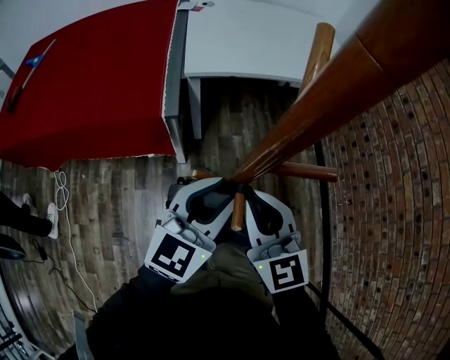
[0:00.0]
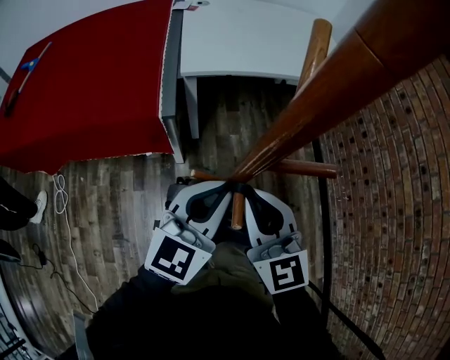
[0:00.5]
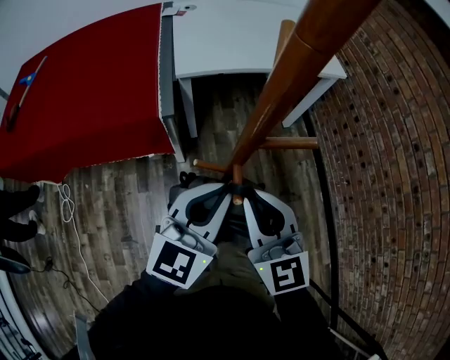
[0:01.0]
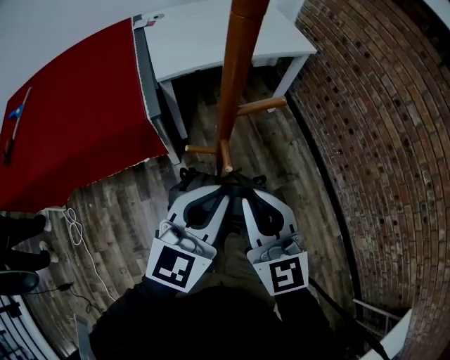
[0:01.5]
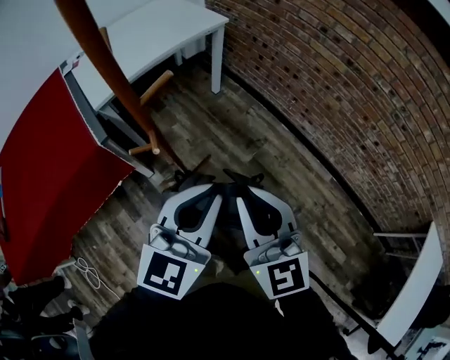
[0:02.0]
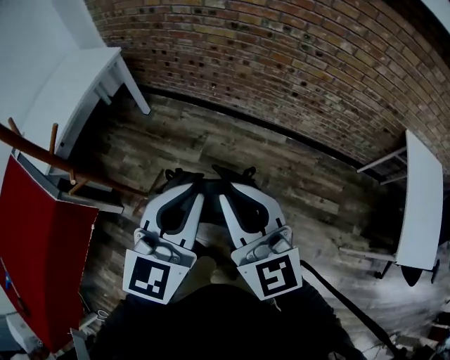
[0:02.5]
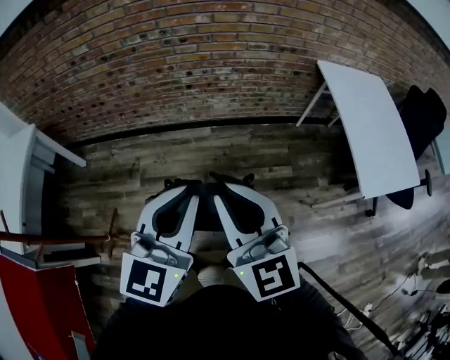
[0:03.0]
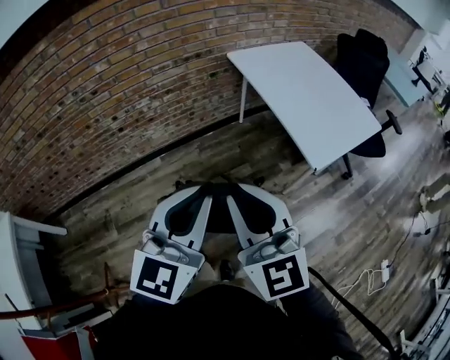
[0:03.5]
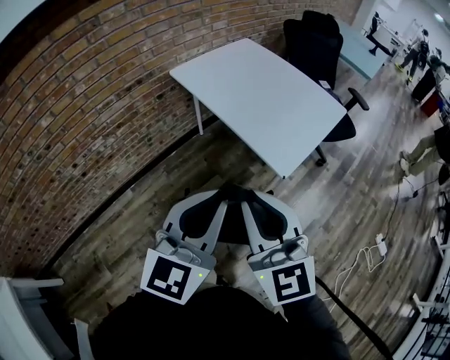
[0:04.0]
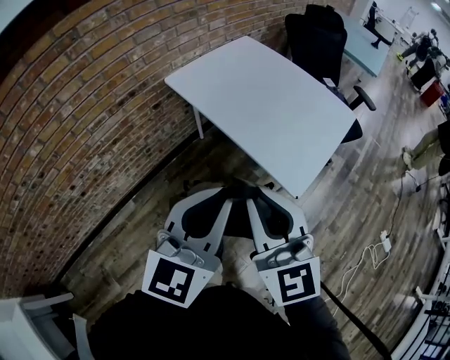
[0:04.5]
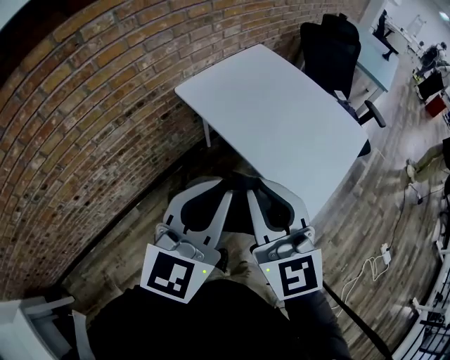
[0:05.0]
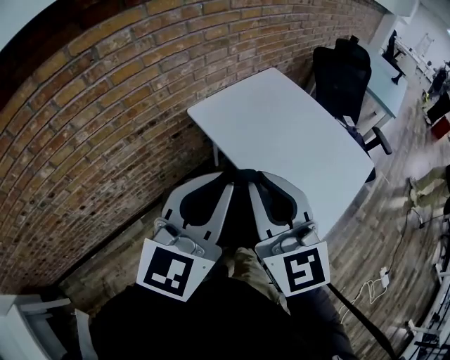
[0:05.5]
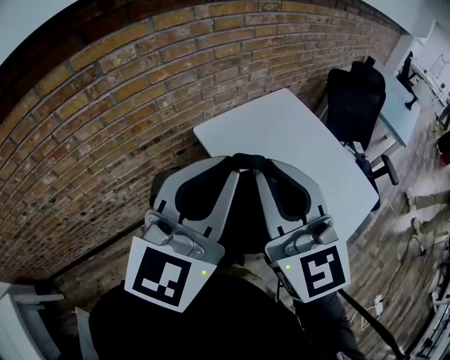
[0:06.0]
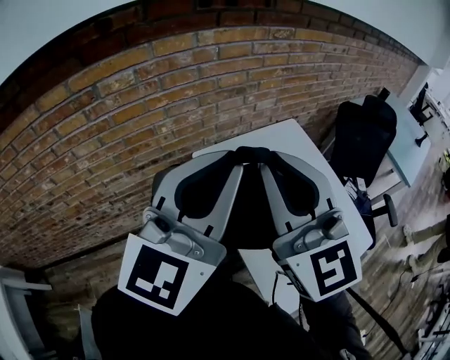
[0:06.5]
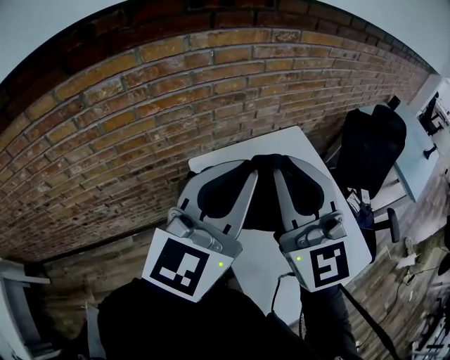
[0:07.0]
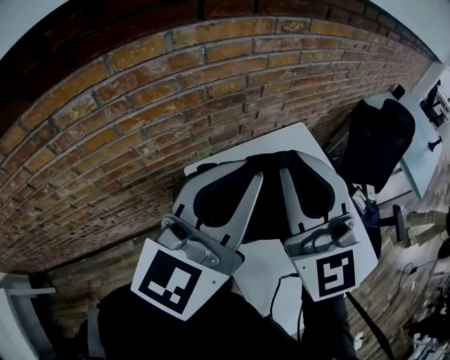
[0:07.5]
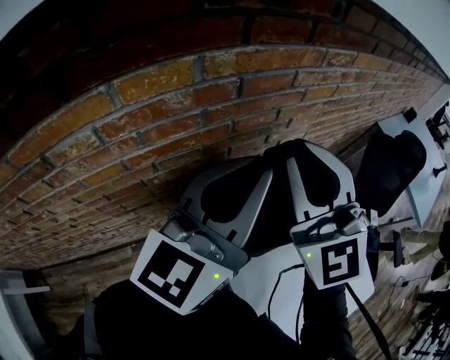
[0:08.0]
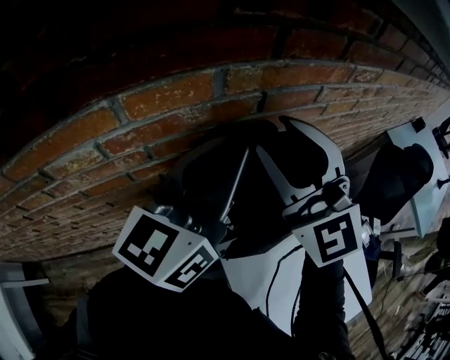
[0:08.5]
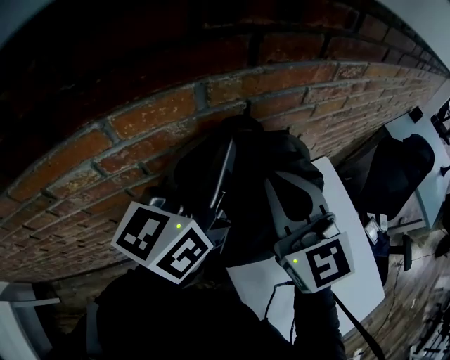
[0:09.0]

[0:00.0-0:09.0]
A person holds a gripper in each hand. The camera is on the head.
0.0 to 2.0 s: The left gripper ends up some 25 cm from where it was, turns by some 30 degrees, and closes its fingers; the right gripper ends up some 25 cm from where it was, and turns by approximately 40 degrees.
2.0 to 4.5 s: Both grippers are carried some 1 m. The right gripper swivels some 90 degrees, while the left gripper changes its angle by some 90 degrees.
4.5 to 7.0 s: Both grippers are carried forward, about 40 cm. The right gripper swivels some 30 degrees, while the left gripper turns by approximately 20 degrees.
7.0 to 9.0 s: The two grippers go roughly 30 cm forward. The right gripper opens, then closes once more.

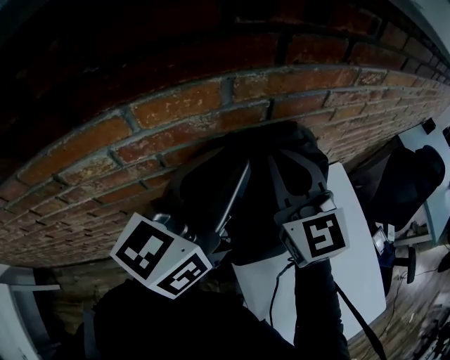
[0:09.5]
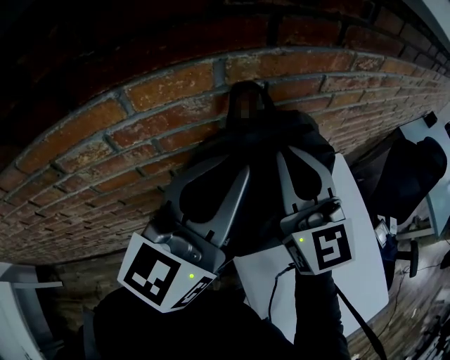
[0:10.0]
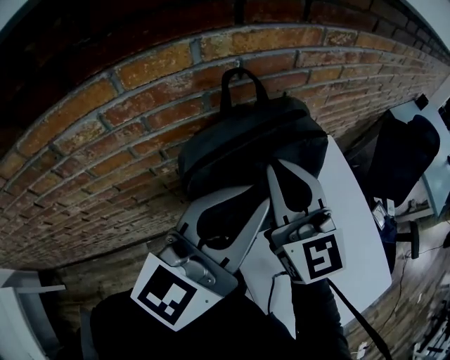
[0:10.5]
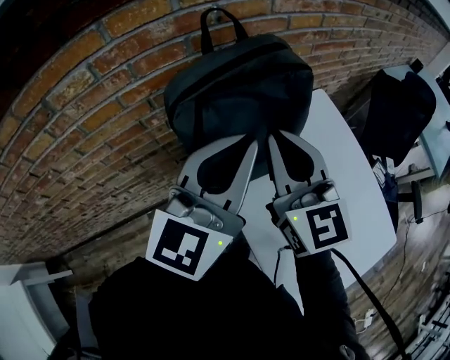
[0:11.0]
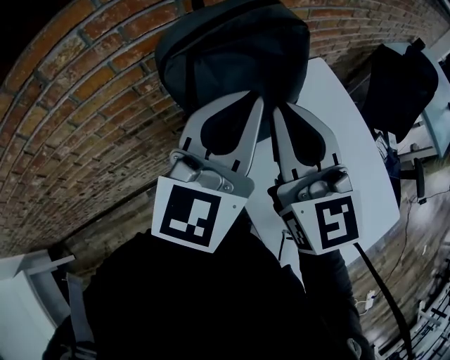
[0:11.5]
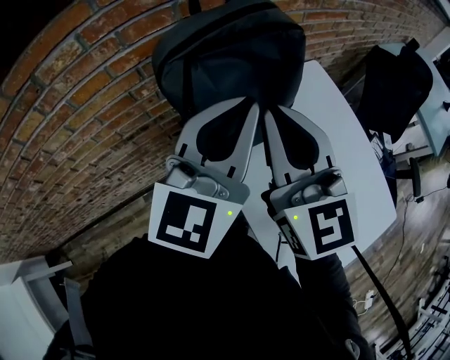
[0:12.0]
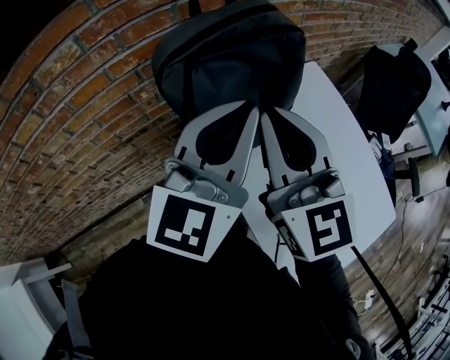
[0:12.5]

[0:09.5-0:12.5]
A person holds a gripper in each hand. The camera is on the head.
9.5 to 11.0 s: Both grippers move backward and to the right, roughly 20 cm.
11.0 to 12.5 s: The right gripper heads backward, covering approximately 5 cm.

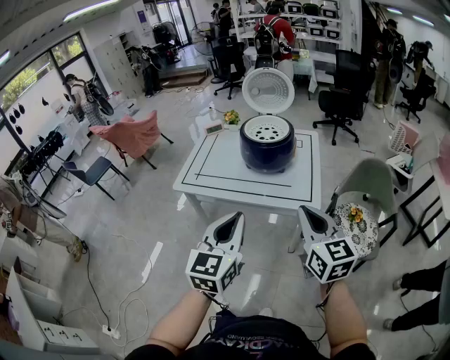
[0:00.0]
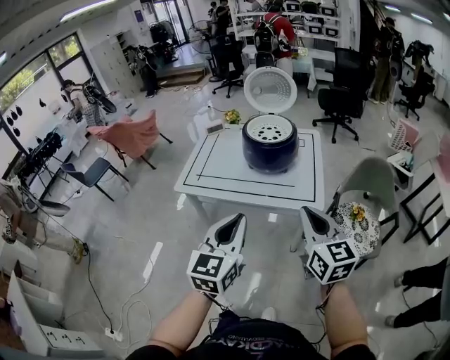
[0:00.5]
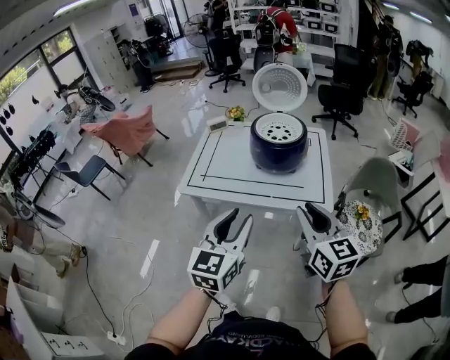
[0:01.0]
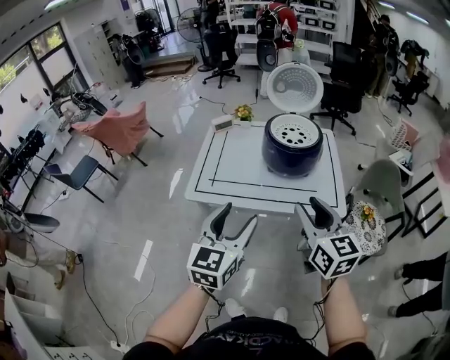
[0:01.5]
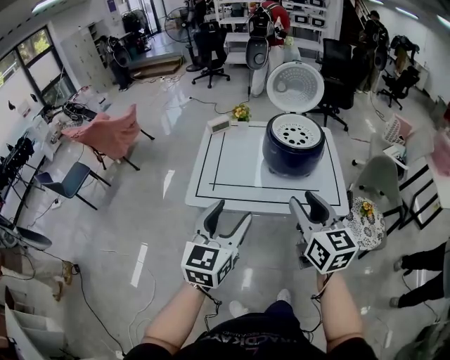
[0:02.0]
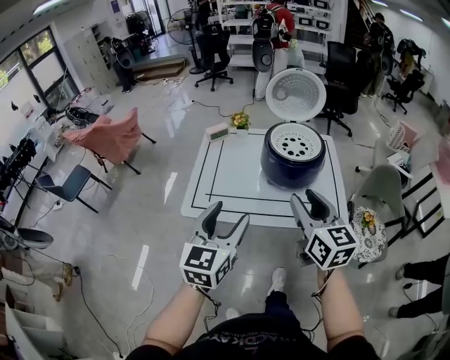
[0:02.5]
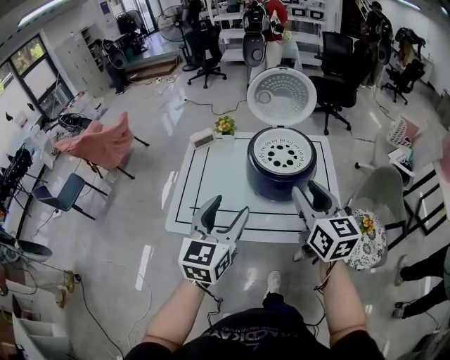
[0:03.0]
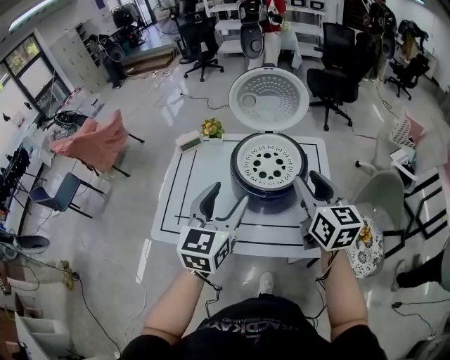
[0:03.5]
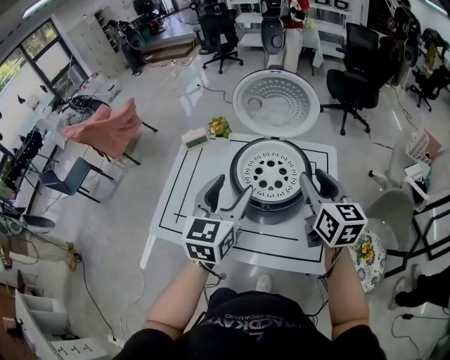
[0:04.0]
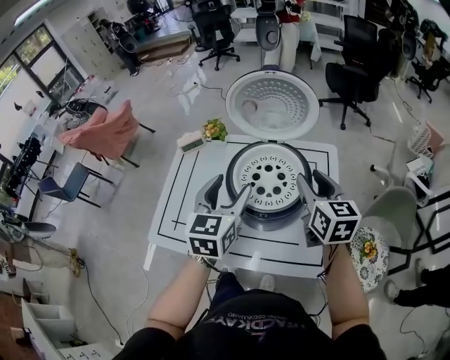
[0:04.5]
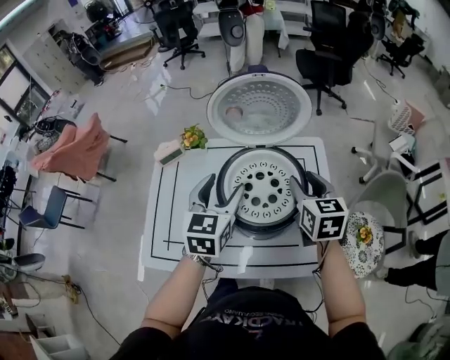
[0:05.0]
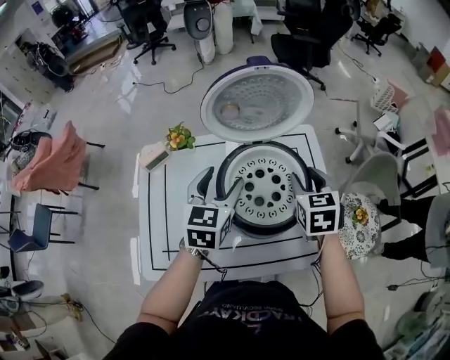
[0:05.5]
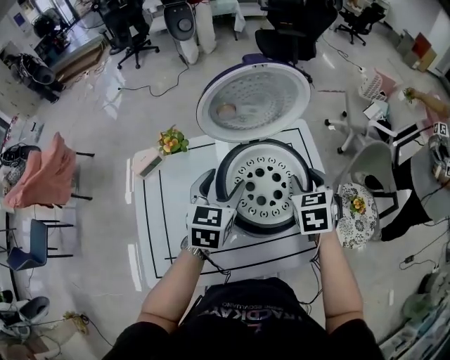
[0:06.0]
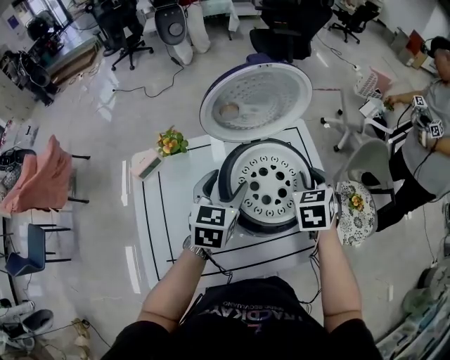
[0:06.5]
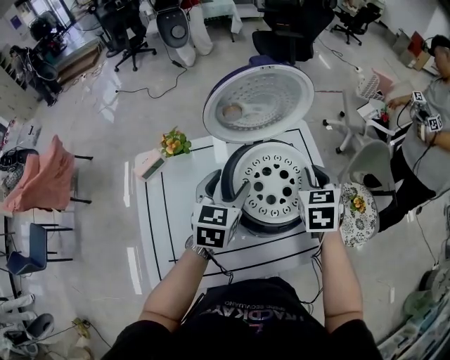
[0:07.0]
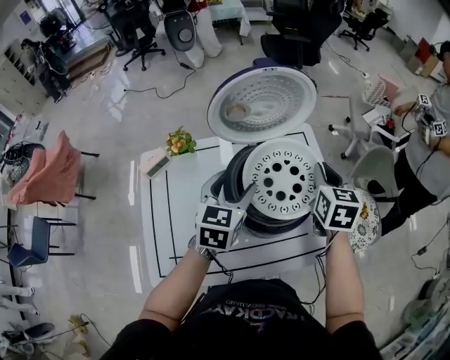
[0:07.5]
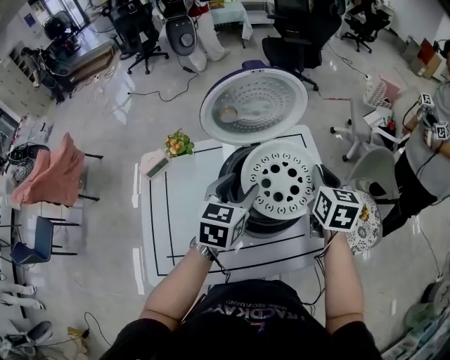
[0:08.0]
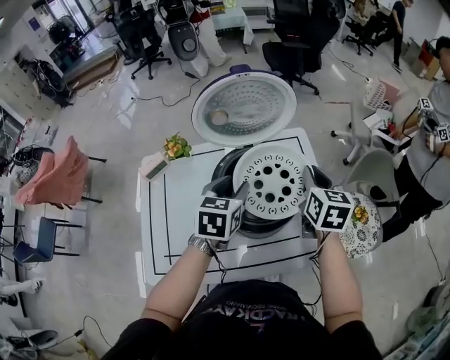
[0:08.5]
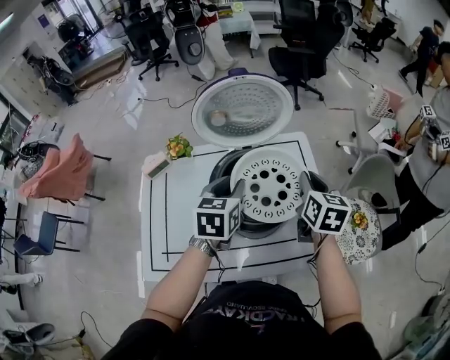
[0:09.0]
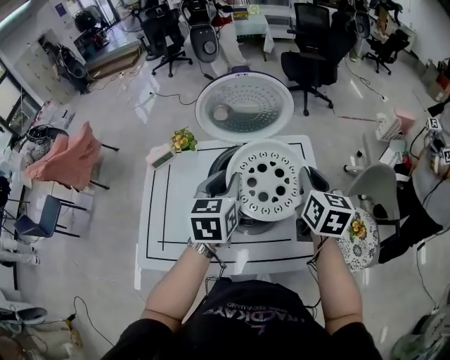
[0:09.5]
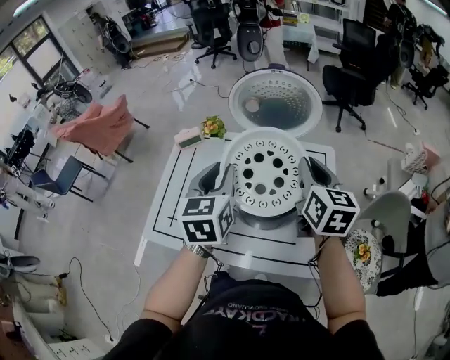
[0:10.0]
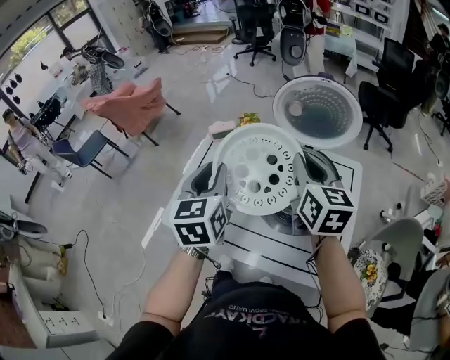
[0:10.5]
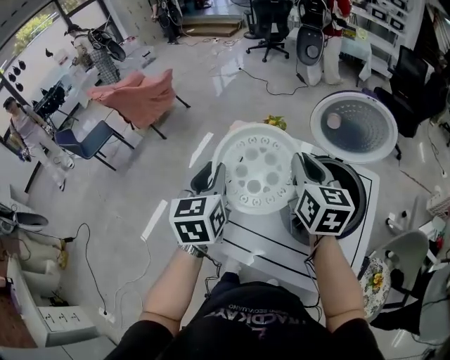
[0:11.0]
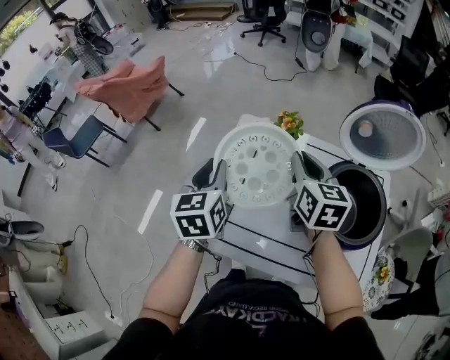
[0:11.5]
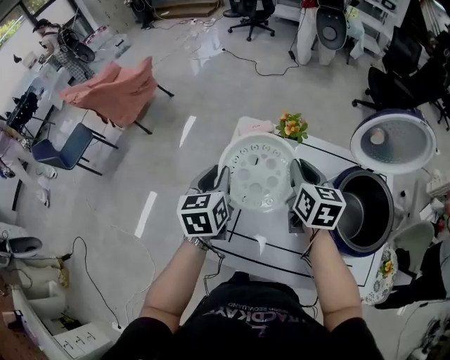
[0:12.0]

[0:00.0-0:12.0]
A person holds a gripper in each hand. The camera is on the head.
0.0 to 2.0 s: Both grippers move to the left and forward, about 25 cm. The right gripper opens its fingers. Meanwhile the left gripper opens.
2.0 to 4.0 s: Both grippers move forward and to the right, roughly 40 cm.
4.0 to 6.0 s: The right gripper shifts some 10 cm downward, and points its fingers roughly 30 degrees further downward. The left gripper shifts by approximately 20 cm, and swivels approximately 30 degrees.
6.0 to 8.0 s: The right gripper heads upward, covering about 5 cm, turns by approximately 30 degrees, and closes.
8.0 to 10.0 s: The two grippers go about 10 cm upward. The right gripper swivels roughly 30 degrees, while the left gripper turns by about 40 degrees, and closes its fingers.
10.0 to 12.0 s: The two grippers go approximately 35 cm to the left and forward.

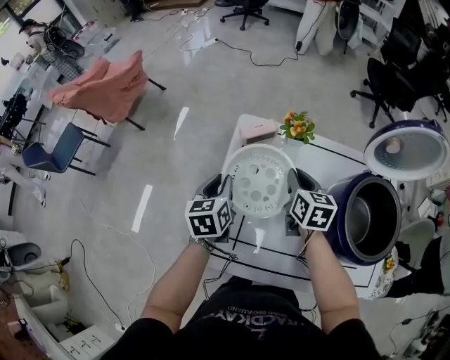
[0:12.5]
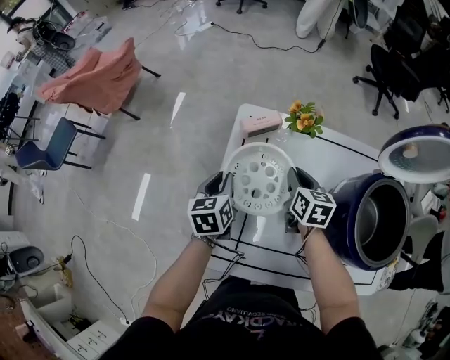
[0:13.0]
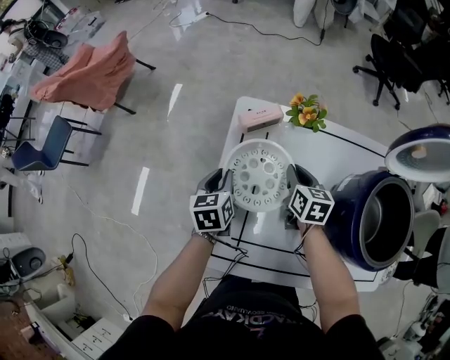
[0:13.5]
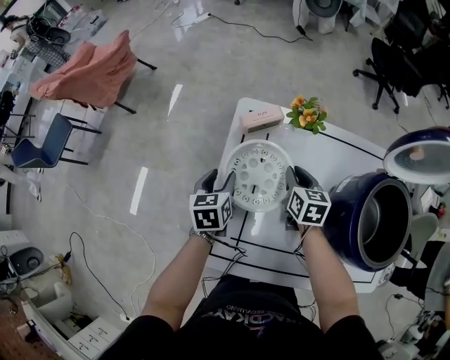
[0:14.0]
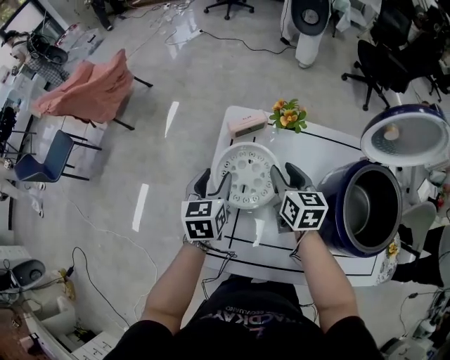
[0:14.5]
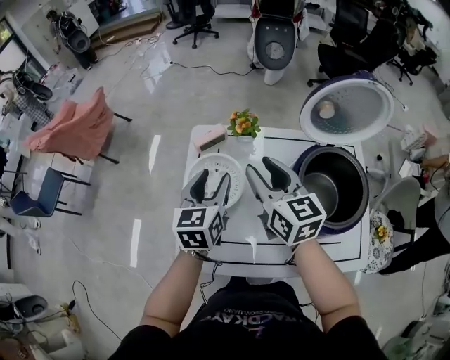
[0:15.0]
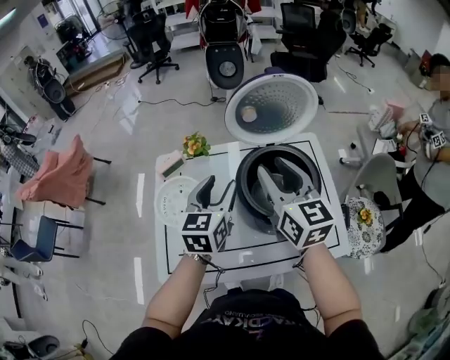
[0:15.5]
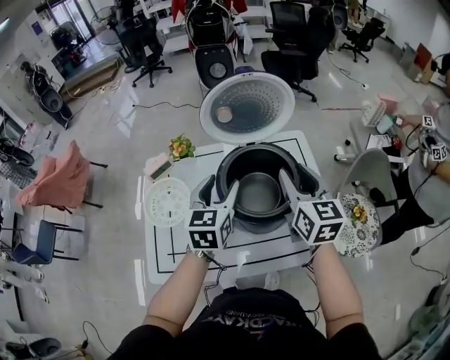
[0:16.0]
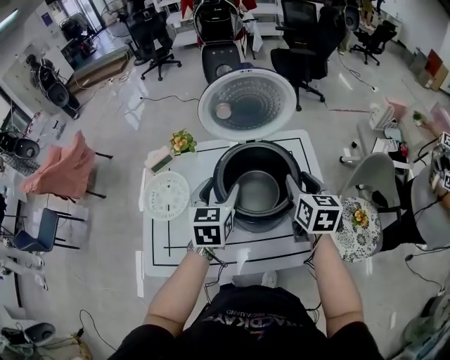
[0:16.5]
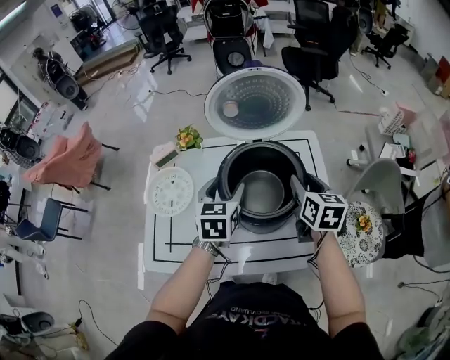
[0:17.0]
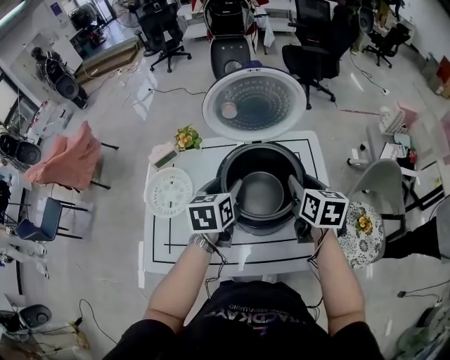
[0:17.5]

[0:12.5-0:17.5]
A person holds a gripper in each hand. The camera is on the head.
12.5 to 15.0 s: The left gripper heads to the right and upward, covering roughly 15 cm, rotates some 20 degrees, and opens its fingers. Meanwhile the right gripper travels upward and backward by roughly 15 cm, rotates about 20 degrees, and opens its fingers.
15.0 to 17.5 s: The two grippers go some 30 cm to the right. The right gripper turns by approximately 30 degrees.
